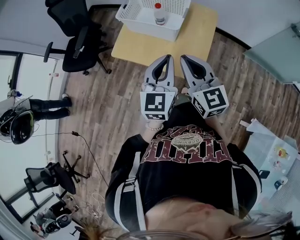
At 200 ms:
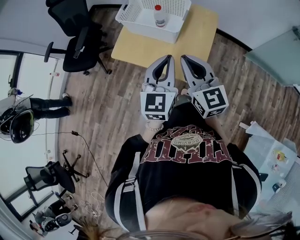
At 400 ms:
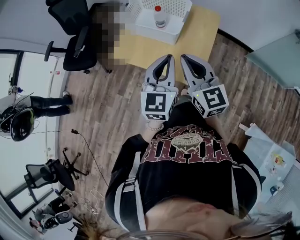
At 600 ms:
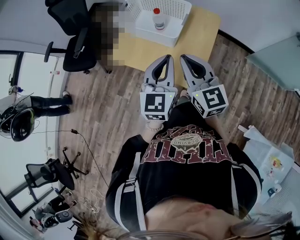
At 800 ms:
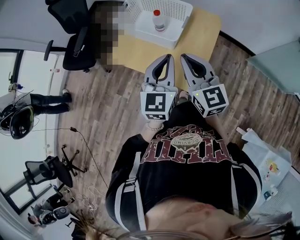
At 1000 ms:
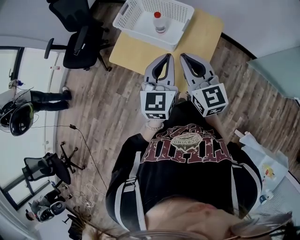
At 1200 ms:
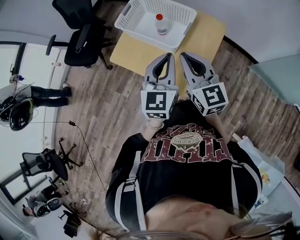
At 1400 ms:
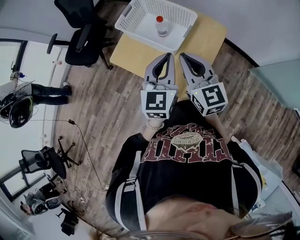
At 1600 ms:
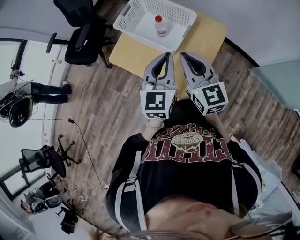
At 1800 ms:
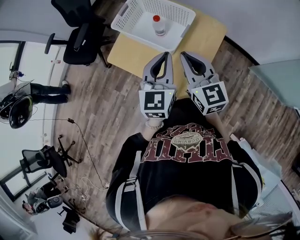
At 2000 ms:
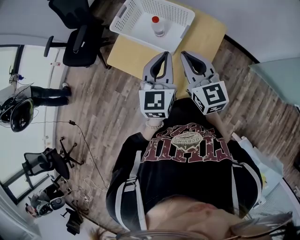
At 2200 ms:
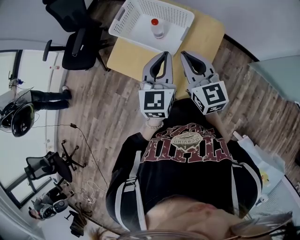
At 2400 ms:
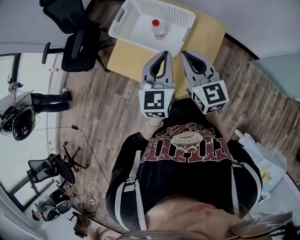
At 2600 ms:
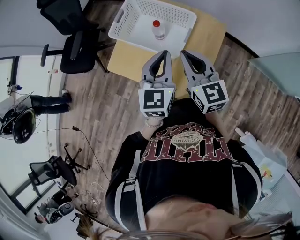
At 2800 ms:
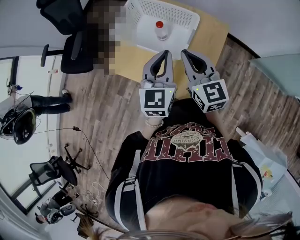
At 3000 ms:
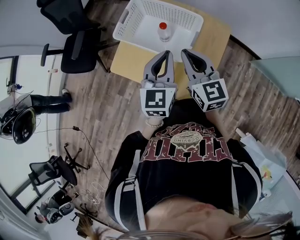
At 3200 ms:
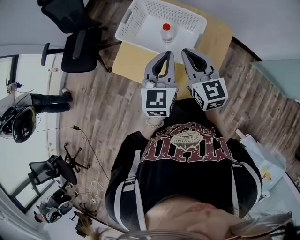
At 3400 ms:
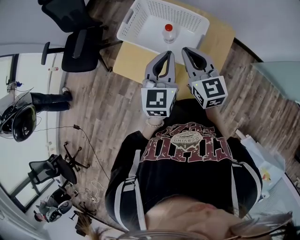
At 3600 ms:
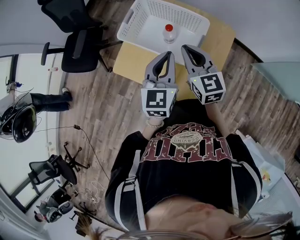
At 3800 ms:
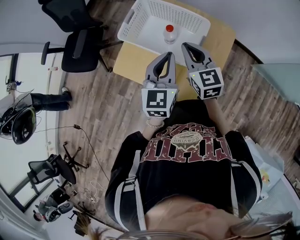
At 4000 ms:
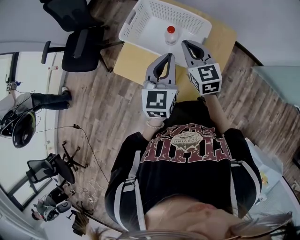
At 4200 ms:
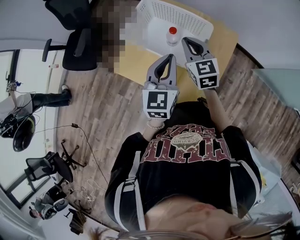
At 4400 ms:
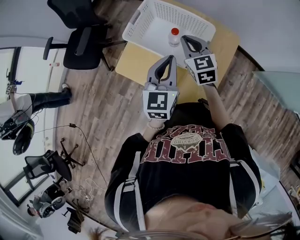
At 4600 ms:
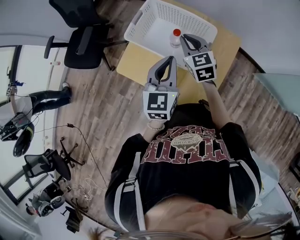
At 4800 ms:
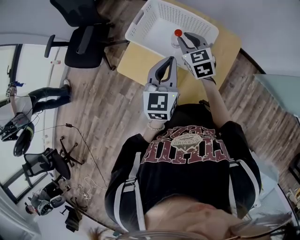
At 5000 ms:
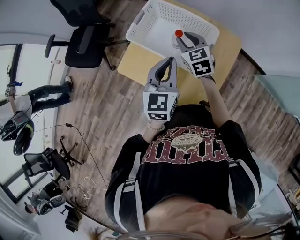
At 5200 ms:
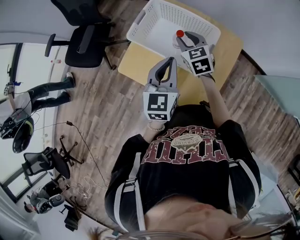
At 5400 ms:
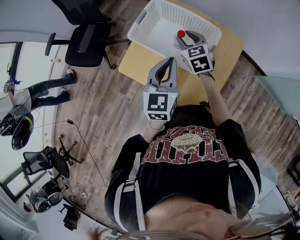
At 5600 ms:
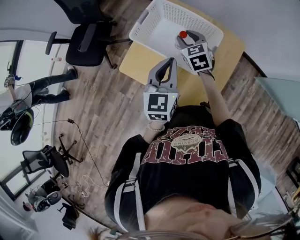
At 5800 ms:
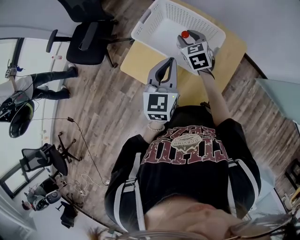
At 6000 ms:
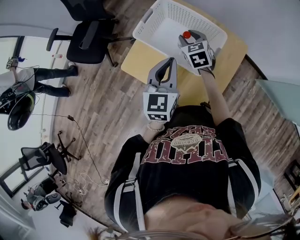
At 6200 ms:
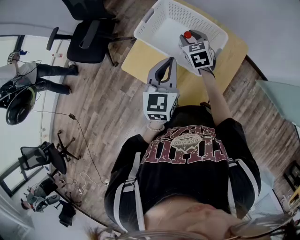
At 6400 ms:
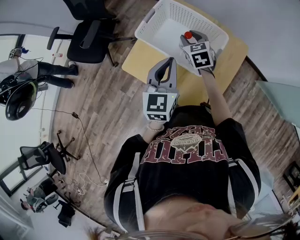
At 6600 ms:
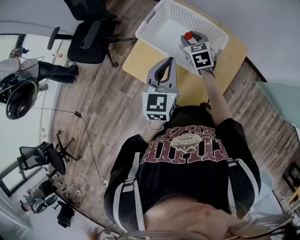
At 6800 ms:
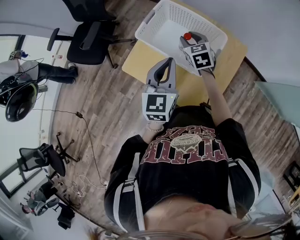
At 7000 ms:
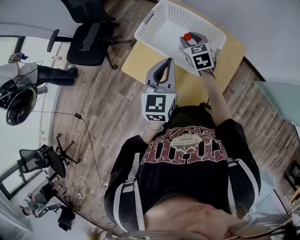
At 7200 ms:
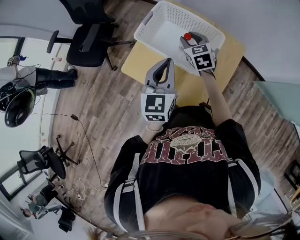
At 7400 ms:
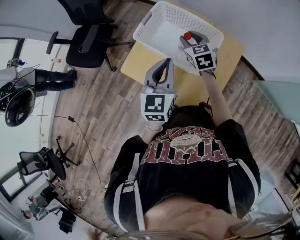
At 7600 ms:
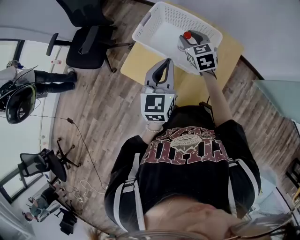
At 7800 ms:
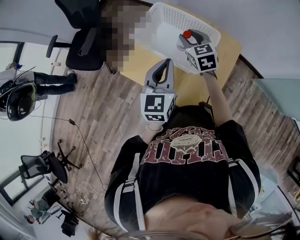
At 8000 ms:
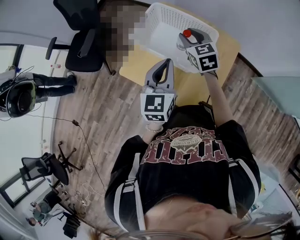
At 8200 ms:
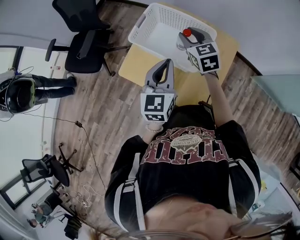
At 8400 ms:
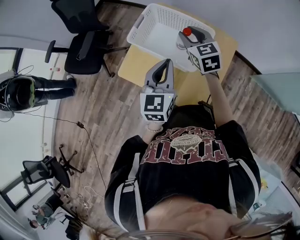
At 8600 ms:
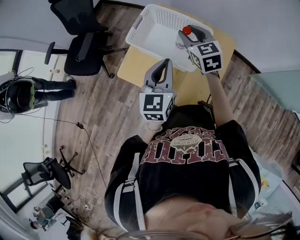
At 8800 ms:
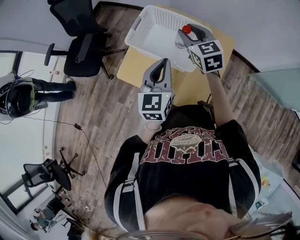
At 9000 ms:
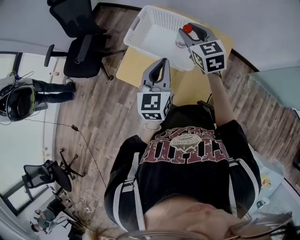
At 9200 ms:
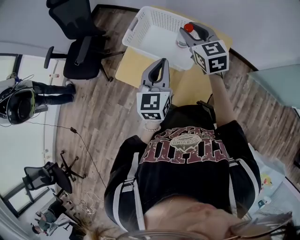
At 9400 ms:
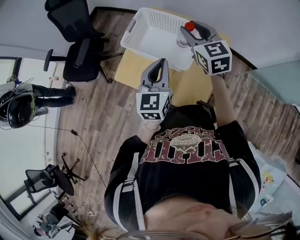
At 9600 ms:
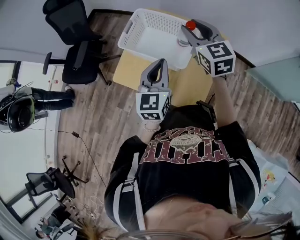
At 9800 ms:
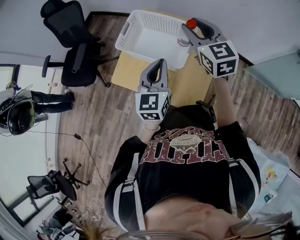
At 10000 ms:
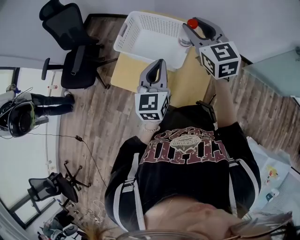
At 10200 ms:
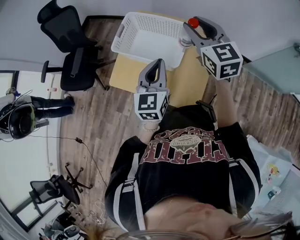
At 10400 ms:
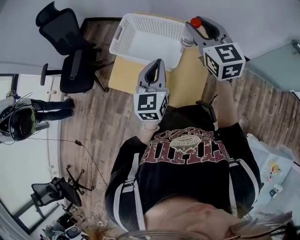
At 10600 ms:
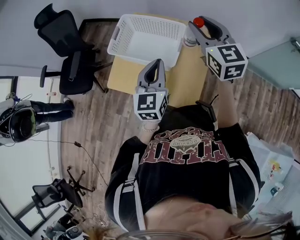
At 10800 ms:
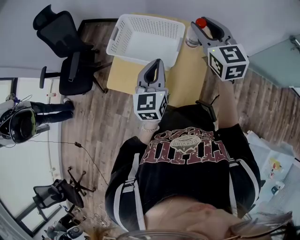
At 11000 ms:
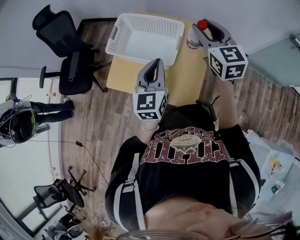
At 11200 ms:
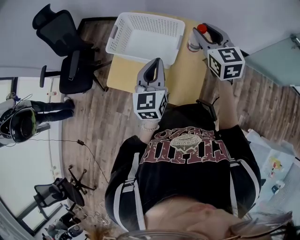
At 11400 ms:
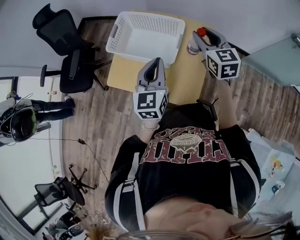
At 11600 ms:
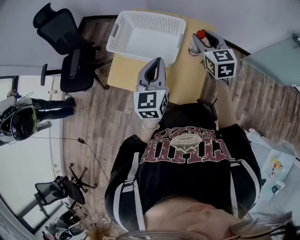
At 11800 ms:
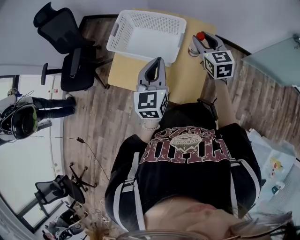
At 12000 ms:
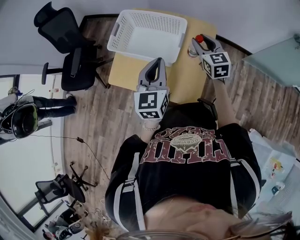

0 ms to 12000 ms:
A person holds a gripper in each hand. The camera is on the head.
0 ms to 1600 ms: The two grippers go approximately 15 cm forward and to the right.
1600 ms to 3000 ms: Both grippers travel together forward, about 10 cm.
3000 ms to 4400 ms: The right gripper is displaced forward and downward by approximately 15 cm.
4400 ms to 6000 ms: The left gripper ends up some 5 cm from where it was; the right gripper is displaced downward and forward by about 10 cm, and opens.
6000 ms to 7600 ms: The right gripper ends up roughly 5 cm from where it was.
7600 ms to 9000 ms: The right gripper heads upward, covering about 10 cm.
9000 ms to 10400 ms: The left gripper is displaced to the right by about 5 cm; the right gripper travels to the right, upward and backward by some 15 cm.
10400 ms to 12000 ms: The right gripper heads downward, covering about 15 cm.

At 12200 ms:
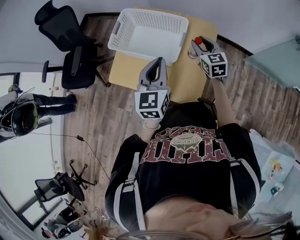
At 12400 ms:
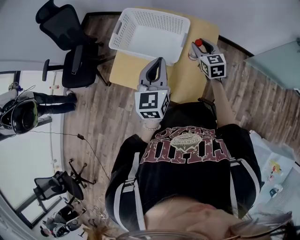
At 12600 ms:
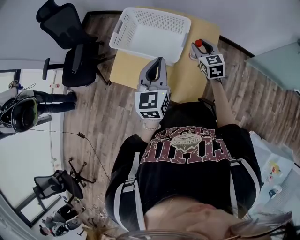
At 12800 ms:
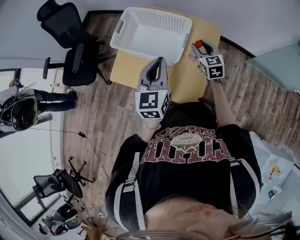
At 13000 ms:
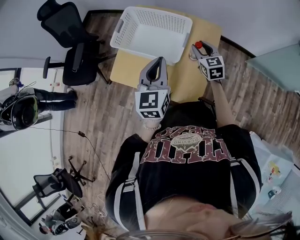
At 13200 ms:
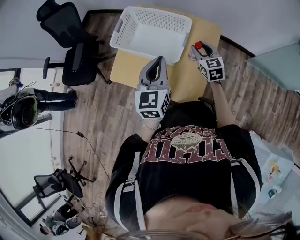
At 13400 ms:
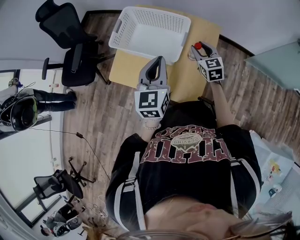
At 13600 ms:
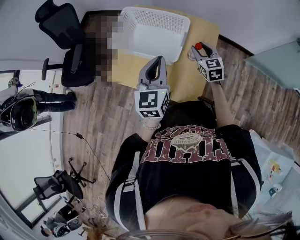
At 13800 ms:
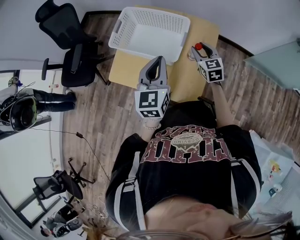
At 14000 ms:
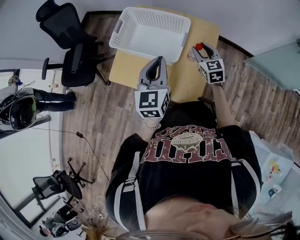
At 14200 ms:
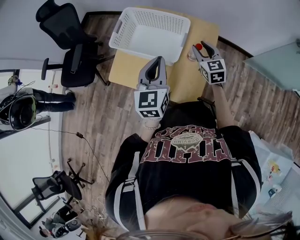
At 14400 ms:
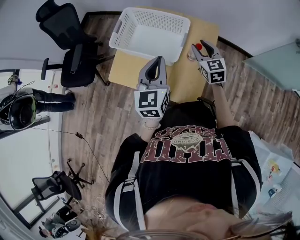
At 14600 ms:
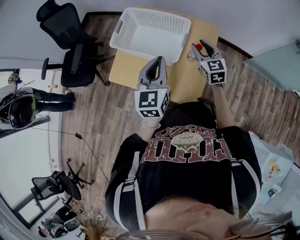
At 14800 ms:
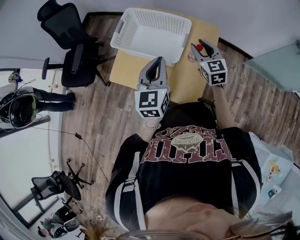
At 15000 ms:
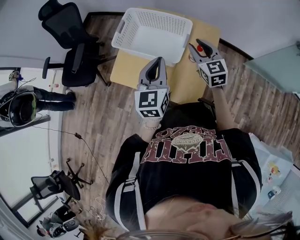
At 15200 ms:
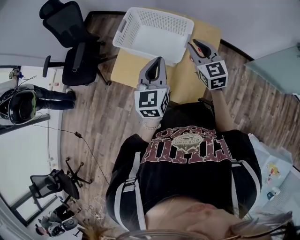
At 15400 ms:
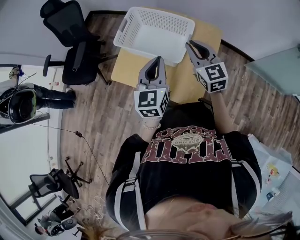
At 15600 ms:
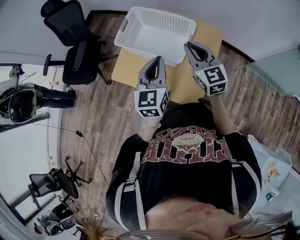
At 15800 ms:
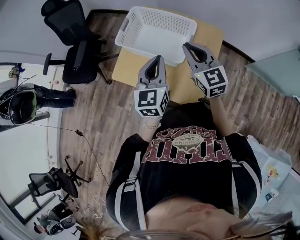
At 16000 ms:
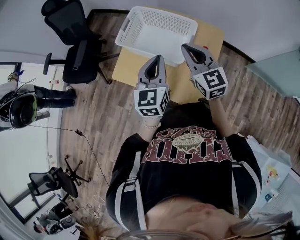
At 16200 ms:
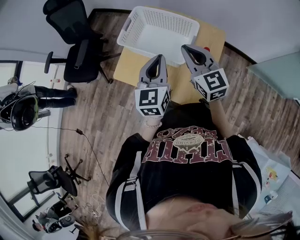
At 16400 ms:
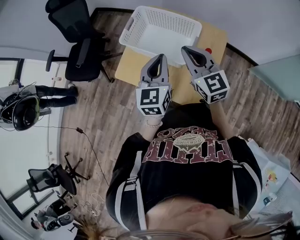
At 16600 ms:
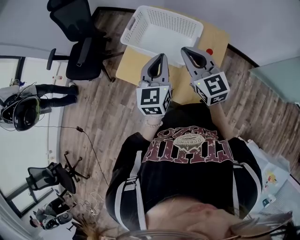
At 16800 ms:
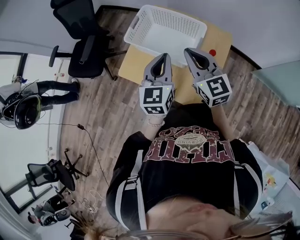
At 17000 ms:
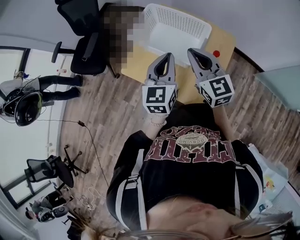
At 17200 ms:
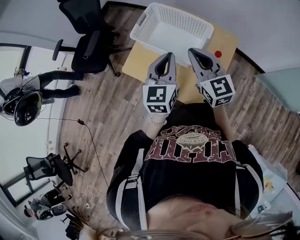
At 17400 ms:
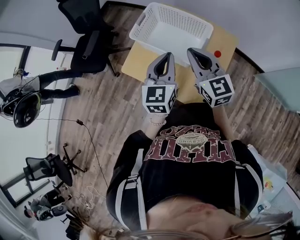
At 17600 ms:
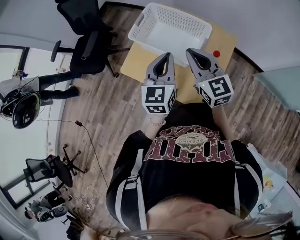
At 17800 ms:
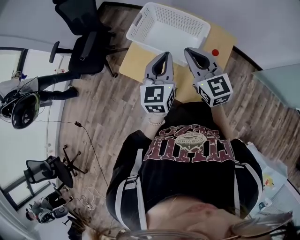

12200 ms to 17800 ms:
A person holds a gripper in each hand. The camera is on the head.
12200 ms to 13600 ms: The grippers move only a little.
13600 ms to 15000 ms: The right gripper travels upward by some 10 cm.
15000 ms to 16400 ms: The right gripper goes some 10 cm to the left and upward, and closes its fingers.
16400 ms to 17800 ms: The grippers make only small movements.

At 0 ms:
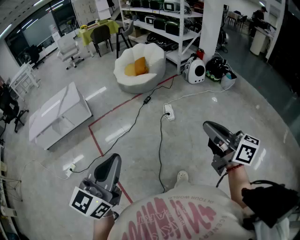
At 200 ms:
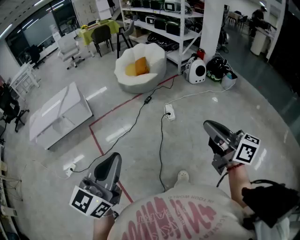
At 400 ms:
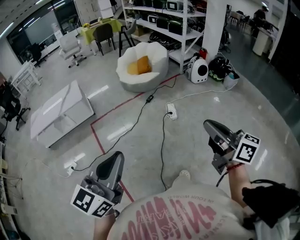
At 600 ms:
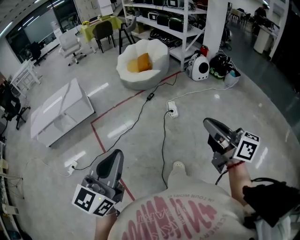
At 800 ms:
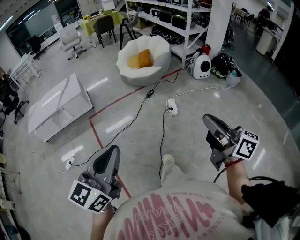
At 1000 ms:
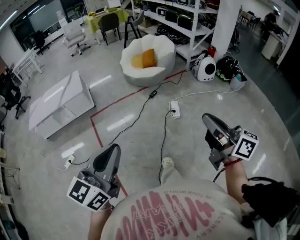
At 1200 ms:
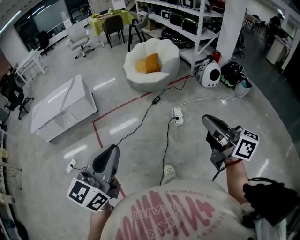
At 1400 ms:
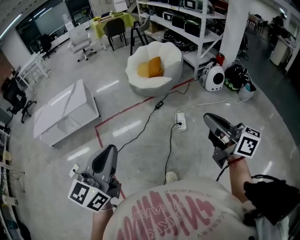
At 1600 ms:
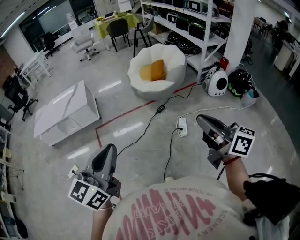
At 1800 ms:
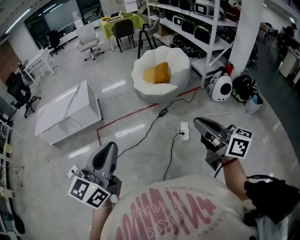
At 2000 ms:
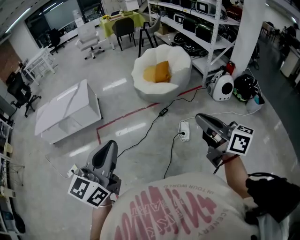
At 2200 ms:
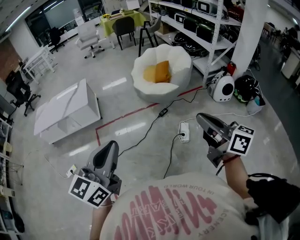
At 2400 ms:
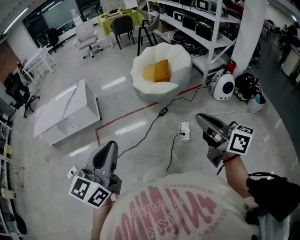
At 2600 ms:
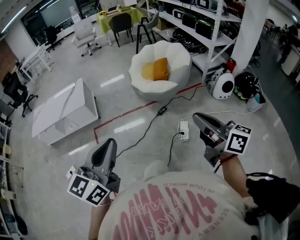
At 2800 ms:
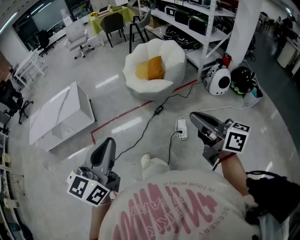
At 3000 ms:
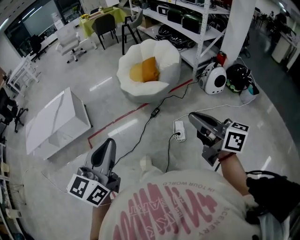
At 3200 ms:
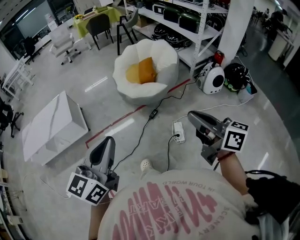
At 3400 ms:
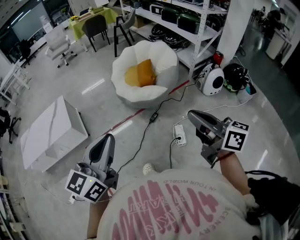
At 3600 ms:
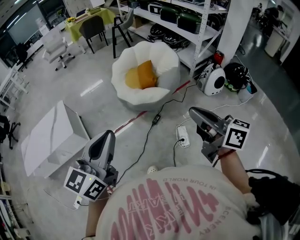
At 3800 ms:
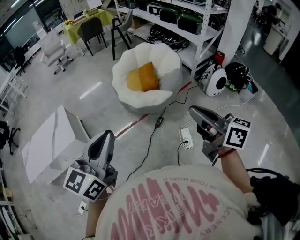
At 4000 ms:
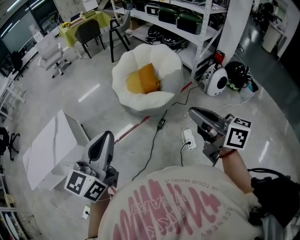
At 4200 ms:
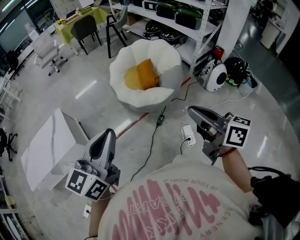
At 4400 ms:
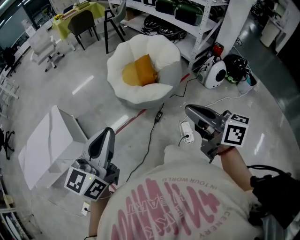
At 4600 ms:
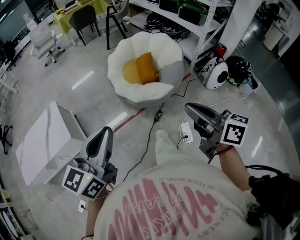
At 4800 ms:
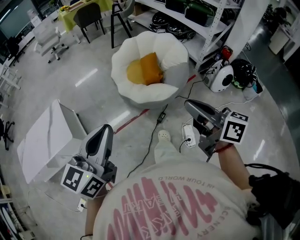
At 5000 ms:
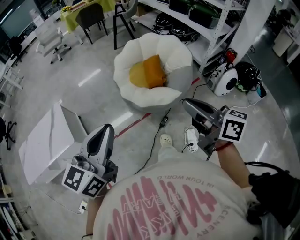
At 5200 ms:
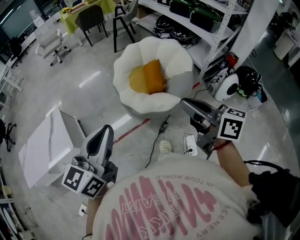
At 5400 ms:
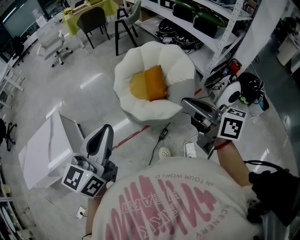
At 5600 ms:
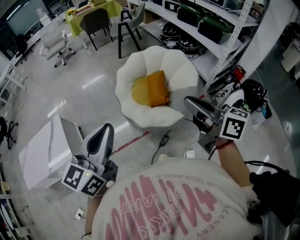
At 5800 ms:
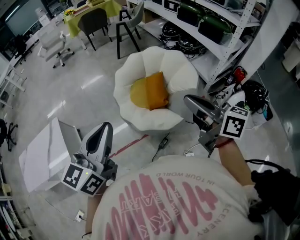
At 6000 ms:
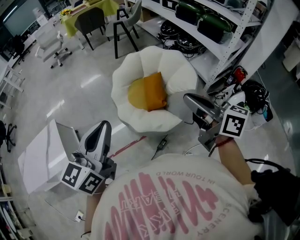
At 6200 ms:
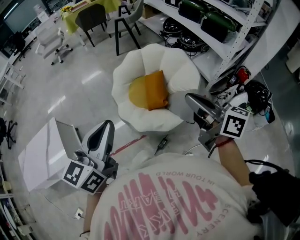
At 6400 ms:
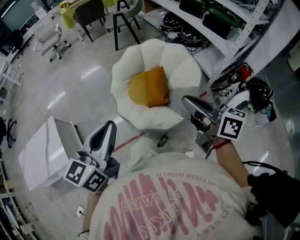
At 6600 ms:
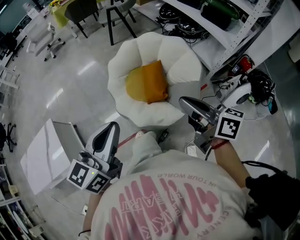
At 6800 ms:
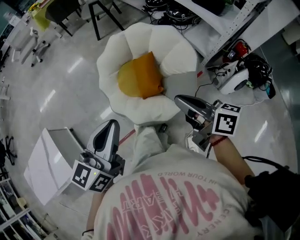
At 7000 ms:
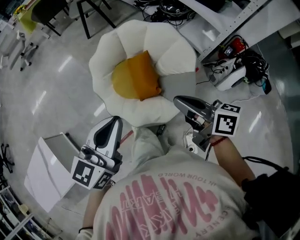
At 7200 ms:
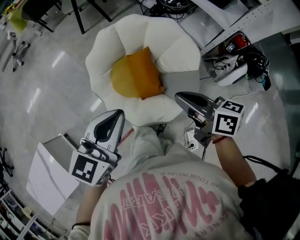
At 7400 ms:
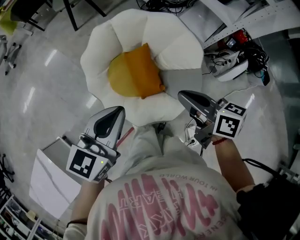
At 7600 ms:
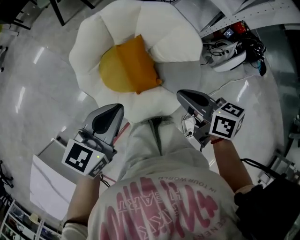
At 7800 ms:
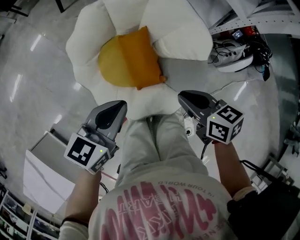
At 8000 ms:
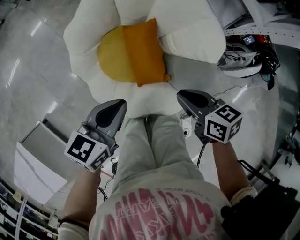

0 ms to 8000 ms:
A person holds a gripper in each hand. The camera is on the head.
0 ms to 1600 ms: Both grippers move forward, some 25 cm.
1600 ms to 3200 ms: The grippers both shift forward by roughly 25 cm.
3200 ms to 4800 ms: The left gripper travels forward by approximately 30 cm; the right gripper moves forward and to the left, roughly 30 cm.
4800 ms to 6400 ms: The right gripper shifts roughly 30 cm forward; the left gripper shifts roughly 35 cm forward and to the right.
6400 ms to 8000 ms: The grippers both shift downward and forward by approximately 40 cm. The left gripper swivels approximately 40 degrees, while the right gripper points its fingers approximately 40 degrees further downward.
